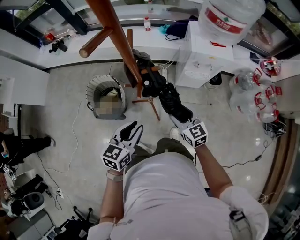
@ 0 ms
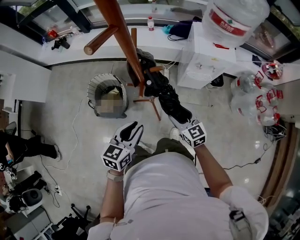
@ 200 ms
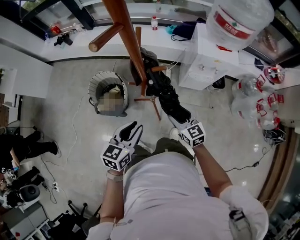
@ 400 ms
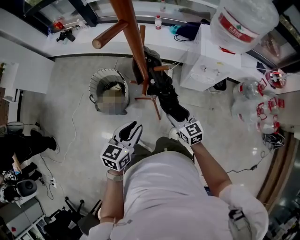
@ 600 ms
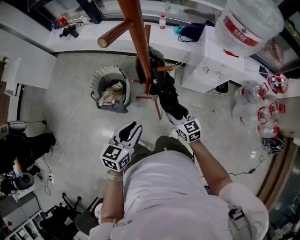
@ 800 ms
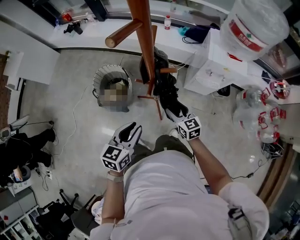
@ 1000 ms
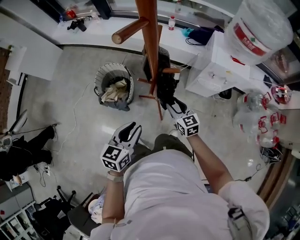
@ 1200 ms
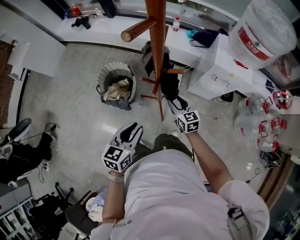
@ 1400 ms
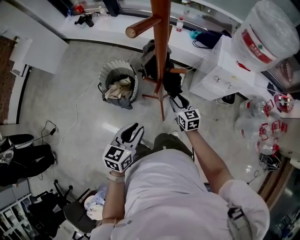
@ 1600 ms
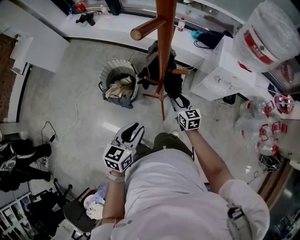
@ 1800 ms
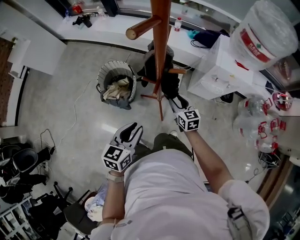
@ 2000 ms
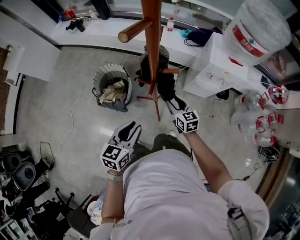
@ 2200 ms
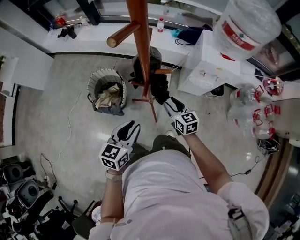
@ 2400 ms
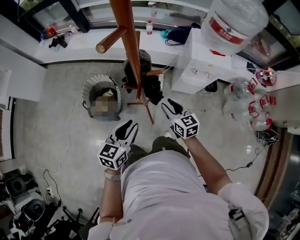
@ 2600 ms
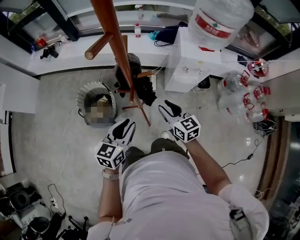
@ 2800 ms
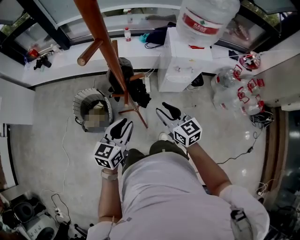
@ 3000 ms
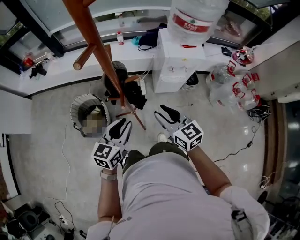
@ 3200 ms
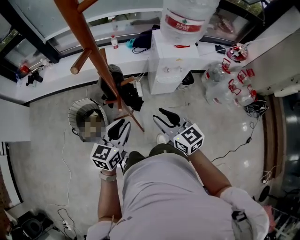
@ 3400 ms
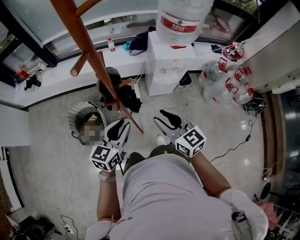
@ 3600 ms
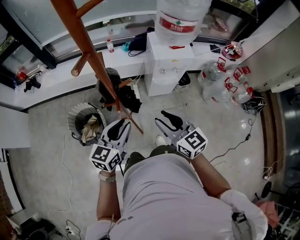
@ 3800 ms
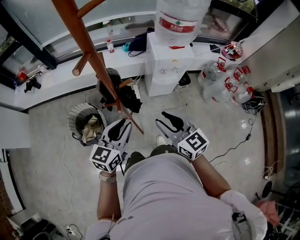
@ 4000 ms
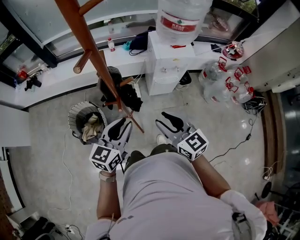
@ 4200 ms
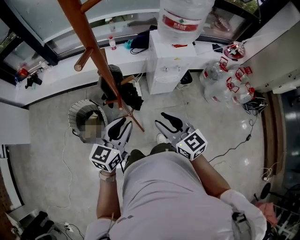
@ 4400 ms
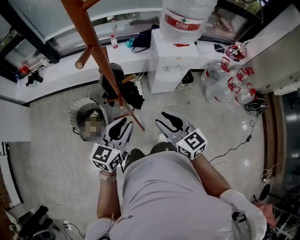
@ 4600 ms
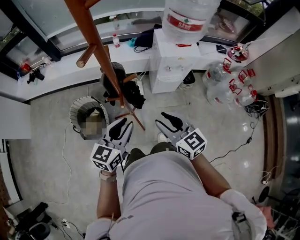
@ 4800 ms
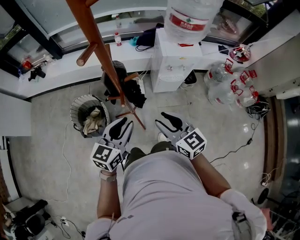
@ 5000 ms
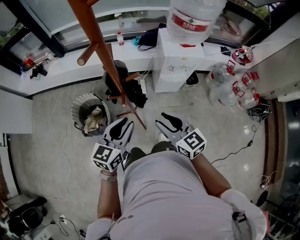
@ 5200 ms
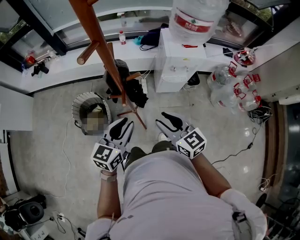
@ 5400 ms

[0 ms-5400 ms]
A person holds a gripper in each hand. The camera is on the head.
0 ms to 1400 ms: The right gripper travels forward and downward by about 10 cm.
1400 ms to 2800 ms: The right gripper goes some 10 cm upward and backward, while the left gripper shifts by approximately 5 cm.
2800 ms to 4000 ms: The left gripper heads upward, covering about 5 cm. Meanwhile the right gripper heads upward and backward, covering roughly 15 cm.
4000 ms to 5400 ms: The grippers stay close to where they were, moving slightly.

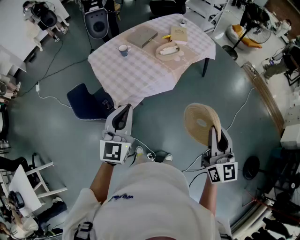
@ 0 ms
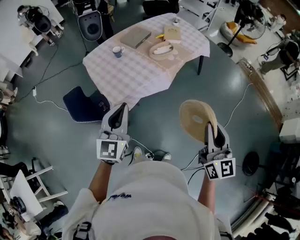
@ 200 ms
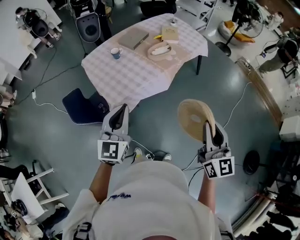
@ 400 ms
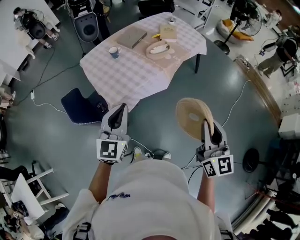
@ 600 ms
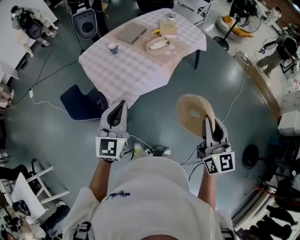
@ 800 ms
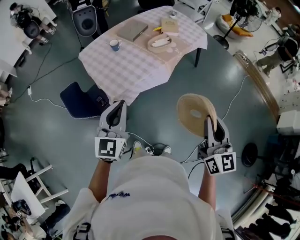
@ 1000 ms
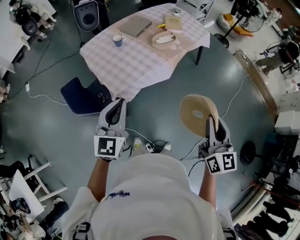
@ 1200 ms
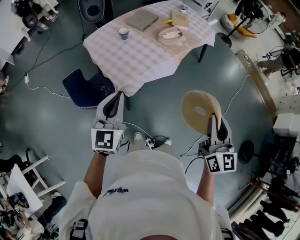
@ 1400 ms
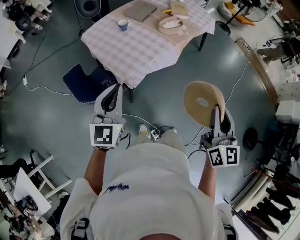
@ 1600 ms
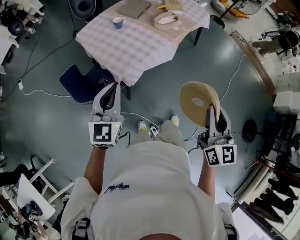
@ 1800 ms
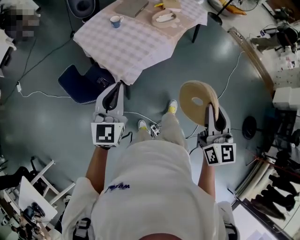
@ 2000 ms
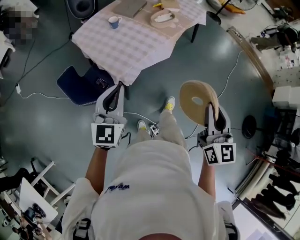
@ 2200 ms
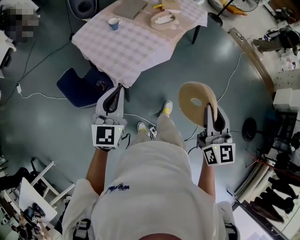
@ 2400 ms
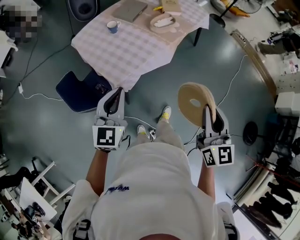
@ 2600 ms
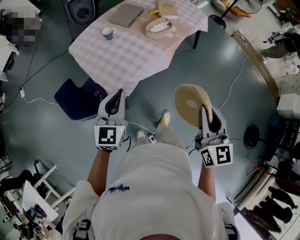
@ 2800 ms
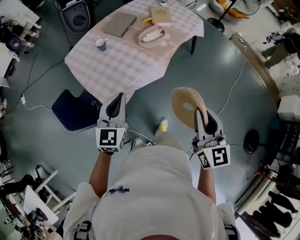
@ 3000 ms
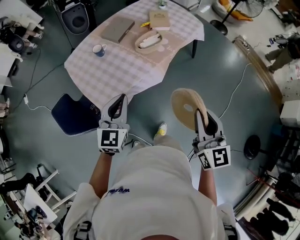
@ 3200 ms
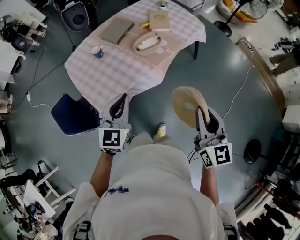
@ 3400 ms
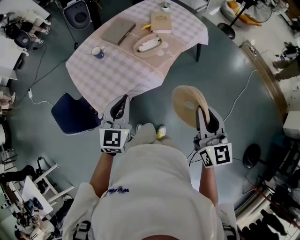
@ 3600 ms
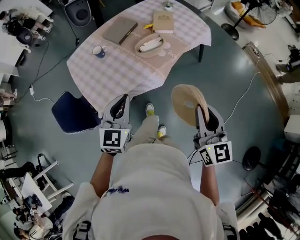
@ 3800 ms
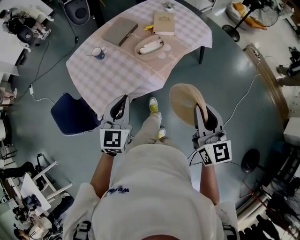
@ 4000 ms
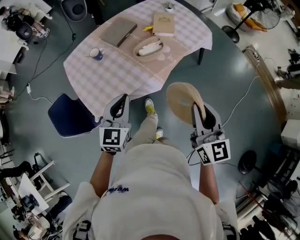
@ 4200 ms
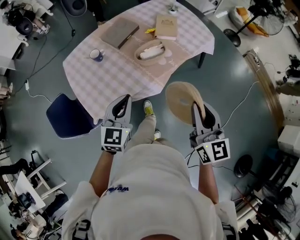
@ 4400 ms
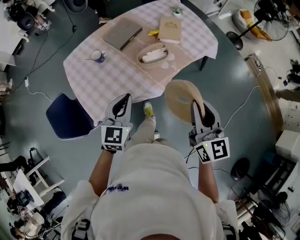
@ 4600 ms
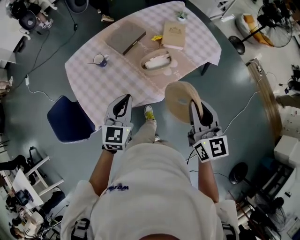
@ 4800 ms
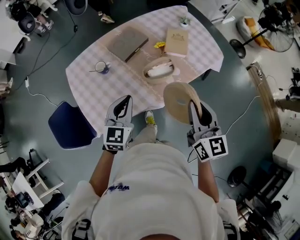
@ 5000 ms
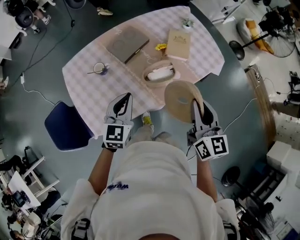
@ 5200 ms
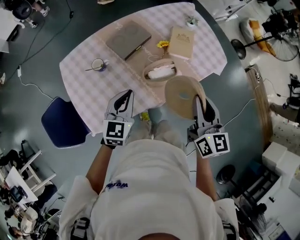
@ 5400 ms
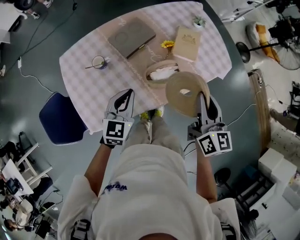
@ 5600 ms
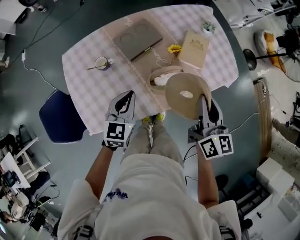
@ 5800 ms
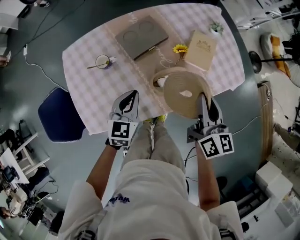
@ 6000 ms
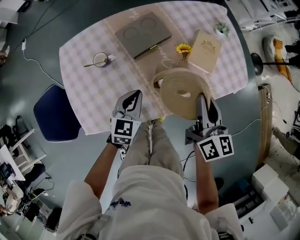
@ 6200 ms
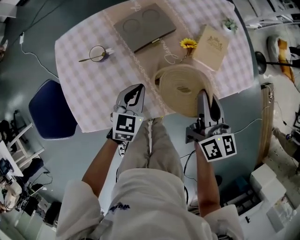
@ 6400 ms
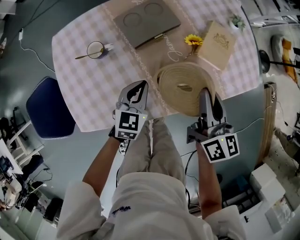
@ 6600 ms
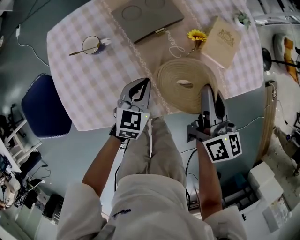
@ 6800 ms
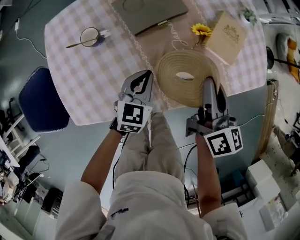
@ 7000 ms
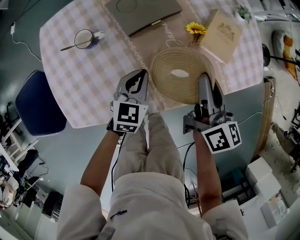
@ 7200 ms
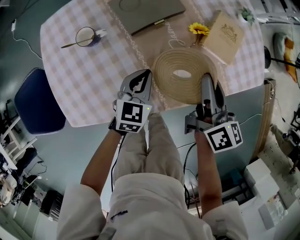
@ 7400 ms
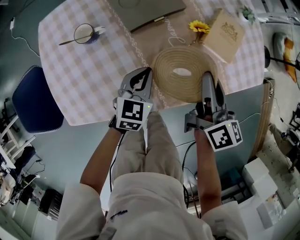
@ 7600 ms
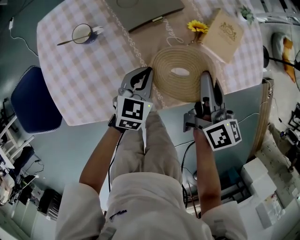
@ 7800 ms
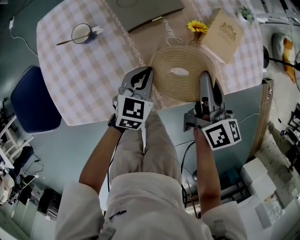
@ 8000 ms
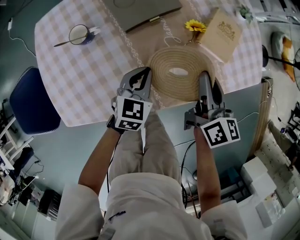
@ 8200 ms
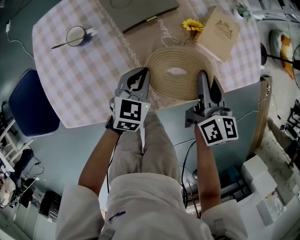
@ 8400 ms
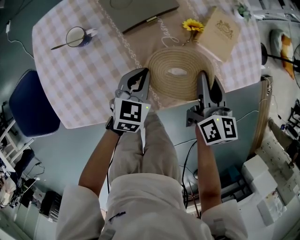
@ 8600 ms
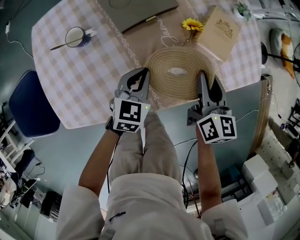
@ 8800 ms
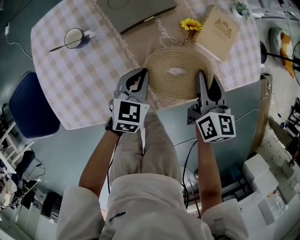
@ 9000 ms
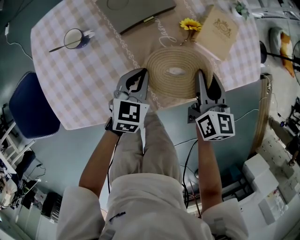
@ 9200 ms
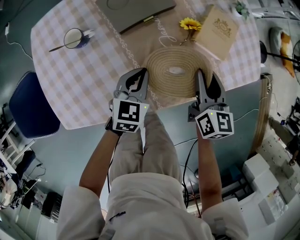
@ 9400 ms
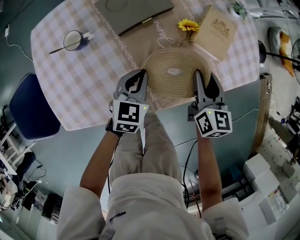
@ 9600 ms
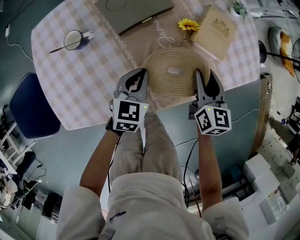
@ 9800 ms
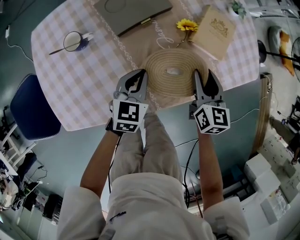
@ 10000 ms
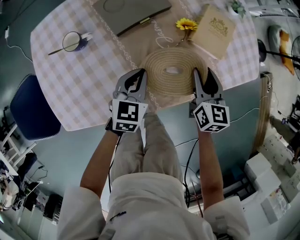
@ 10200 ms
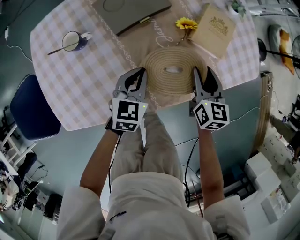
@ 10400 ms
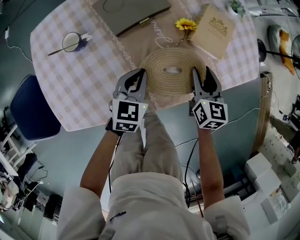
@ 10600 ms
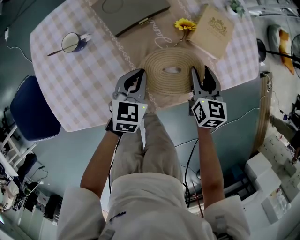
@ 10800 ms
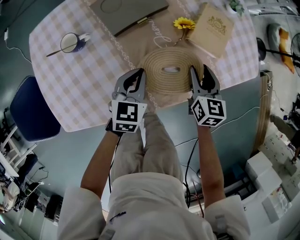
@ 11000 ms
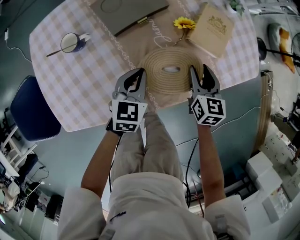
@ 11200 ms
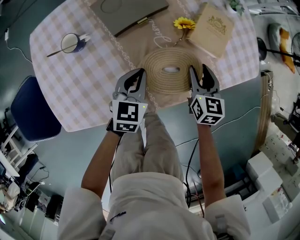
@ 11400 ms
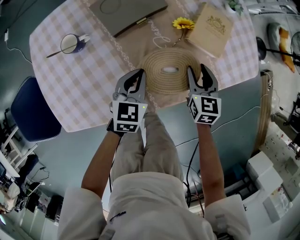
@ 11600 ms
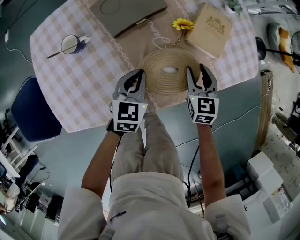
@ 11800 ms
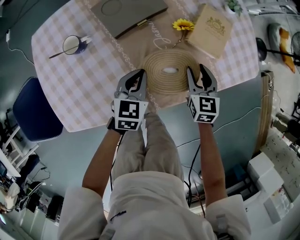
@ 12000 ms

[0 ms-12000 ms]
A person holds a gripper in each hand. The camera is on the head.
0 ms to 1600 ms: The grippers both shift to the left by approximately 15 cm.
1600 ms to 3000 ms: The left gripper goes roughly 20 cm forward, to the right and downward, while the right gripper moves forward, about 15 cm.
3000 ms to 4400 ms: The two grippers go approximately 20 cm forward and to the right.
4400 ms to 6000 ms: The left gripper heads forward and downward, covering some 25 cm; the right gripper shifts about 35 cm forward.
6000 ms to 7600 ms: The left gripper shifts roughly 15 cm downward; the right gripper shifts about 15 cm downward and forward.
7600 ms to 9000 ms: The right gripper ends up about 5 cm from where it was, and turns by about 20 degrees.
9000 ms to 10400 ms: The right gripper shifts by about 5 cm.
10400 ms to 12000 ms: The grippers make only small movements.

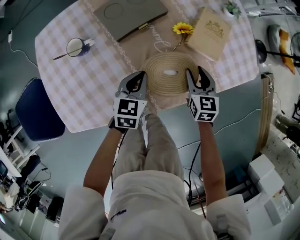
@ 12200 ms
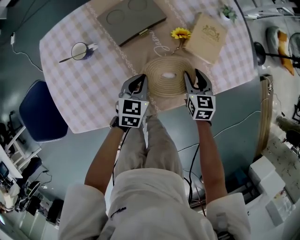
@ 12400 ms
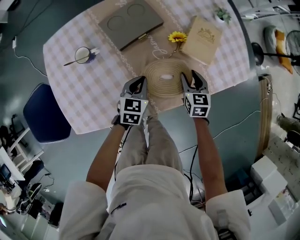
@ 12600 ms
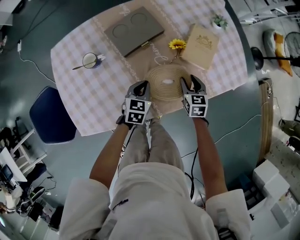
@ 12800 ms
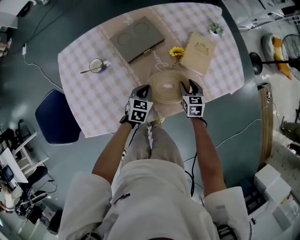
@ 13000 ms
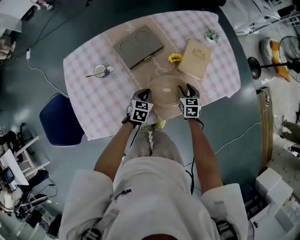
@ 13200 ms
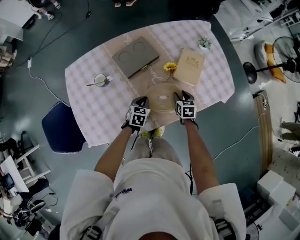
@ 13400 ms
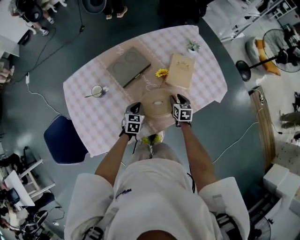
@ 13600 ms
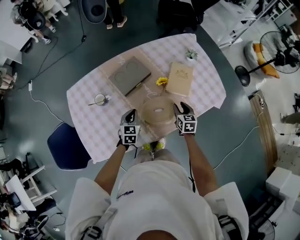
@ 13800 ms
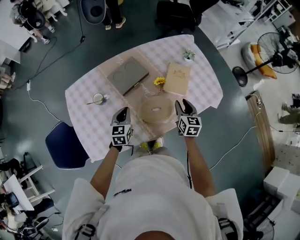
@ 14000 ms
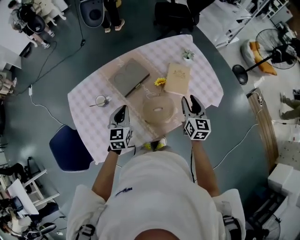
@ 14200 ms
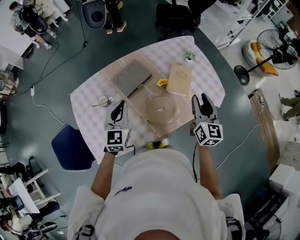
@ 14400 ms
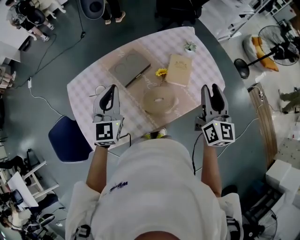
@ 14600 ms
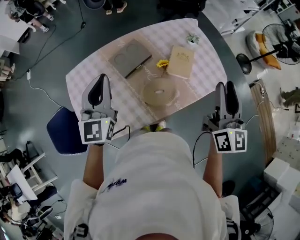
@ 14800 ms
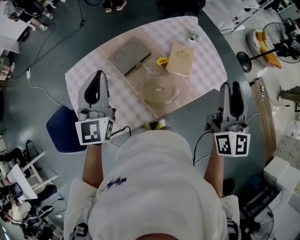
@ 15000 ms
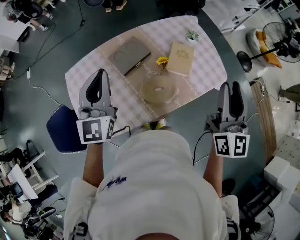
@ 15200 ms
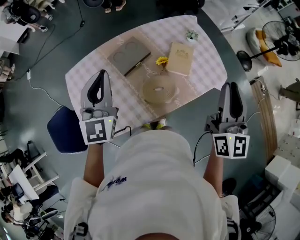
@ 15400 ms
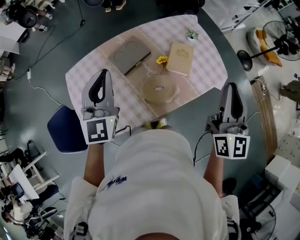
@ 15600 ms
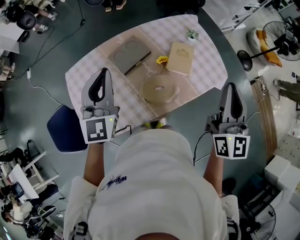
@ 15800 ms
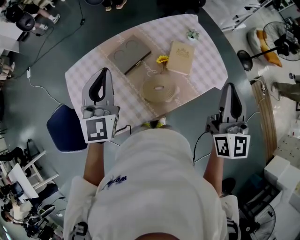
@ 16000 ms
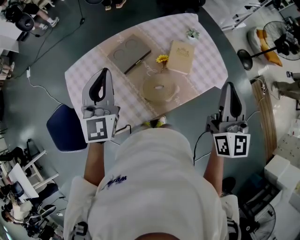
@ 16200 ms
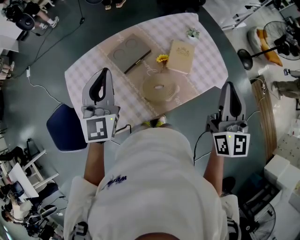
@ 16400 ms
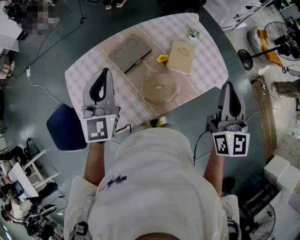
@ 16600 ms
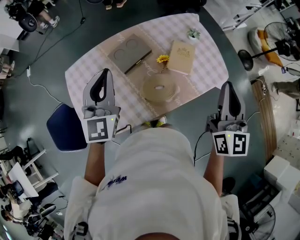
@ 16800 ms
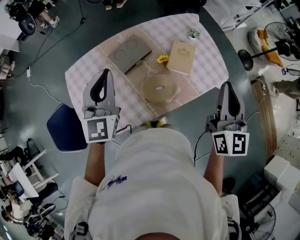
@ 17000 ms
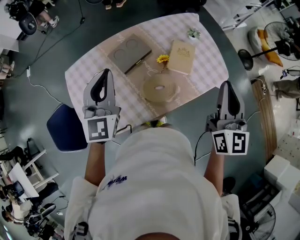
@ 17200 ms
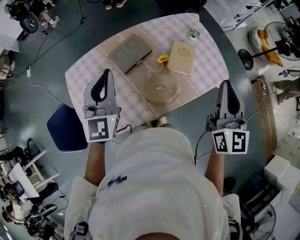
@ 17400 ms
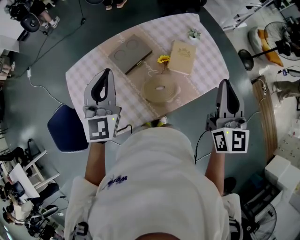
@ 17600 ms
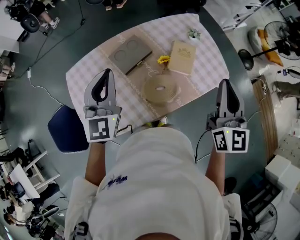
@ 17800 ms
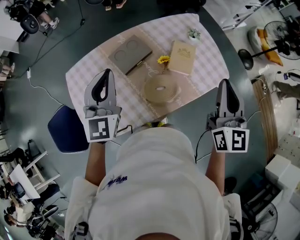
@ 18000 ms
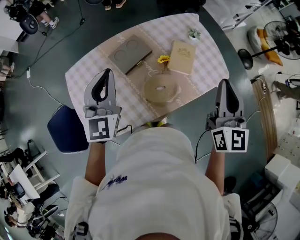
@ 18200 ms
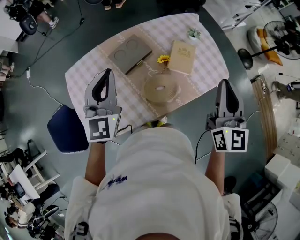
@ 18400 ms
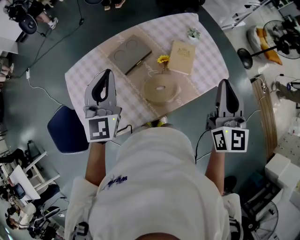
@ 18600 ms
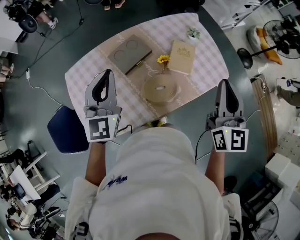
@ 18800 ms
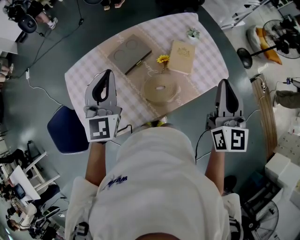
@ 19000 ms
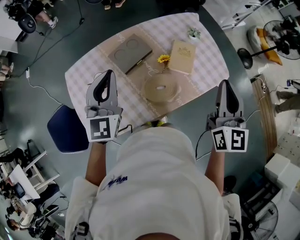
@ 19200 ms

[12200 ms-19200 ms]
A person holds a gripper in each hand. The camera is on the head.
12200 ms to 13600 ms: The grippers move only a little.
13600 ms to 15000 ms: Both grippers travel together upward, roughly 40 cm. The left gripper tips its fingers upward by roughly 40 degrees. The right gripper points its fingers roughly 50 degrees further upward.
15000 ms to 16400 ms: The right gripper closes.
16400 ms to 17800 ms: The grippers stay close to where they were, moving slightly.
17800 ms to 19200 ms: The two grippers keep their place.
